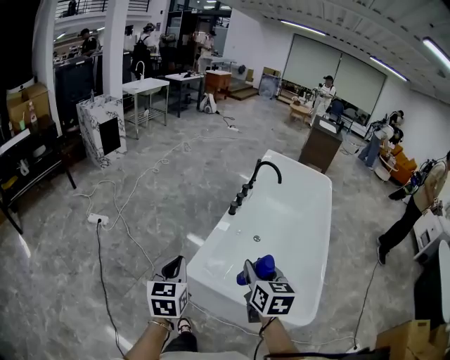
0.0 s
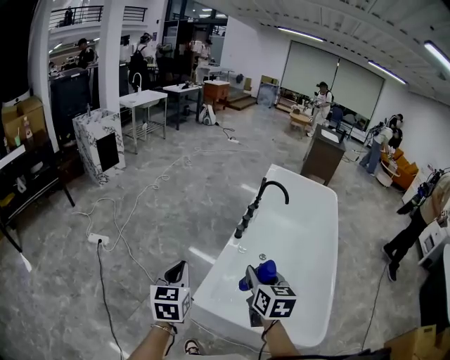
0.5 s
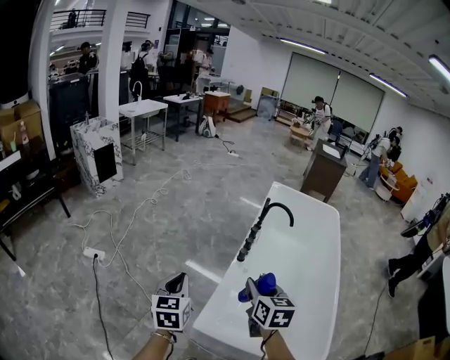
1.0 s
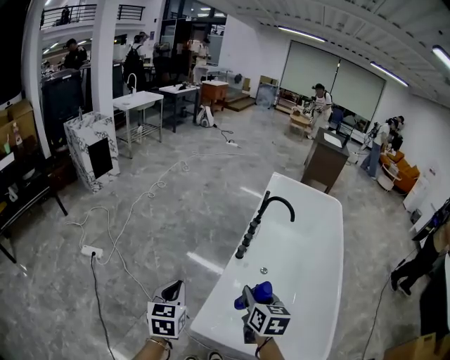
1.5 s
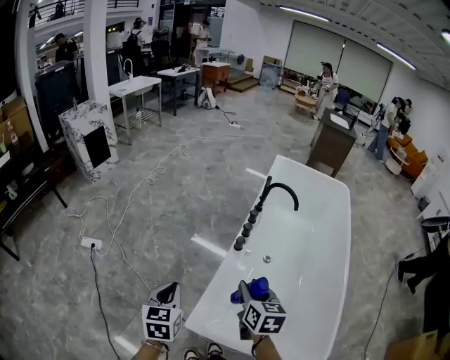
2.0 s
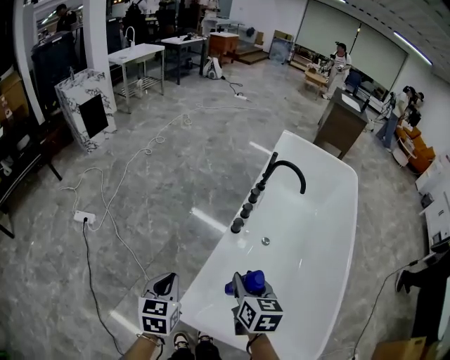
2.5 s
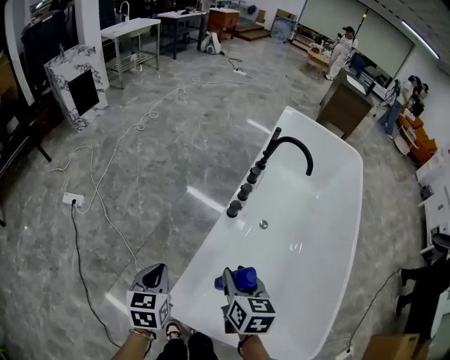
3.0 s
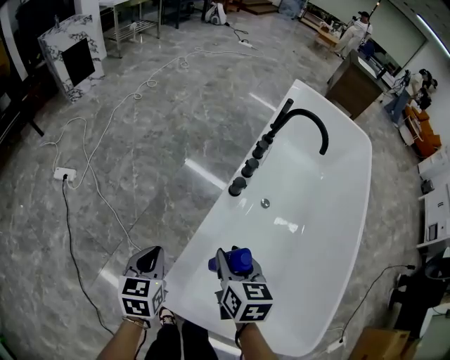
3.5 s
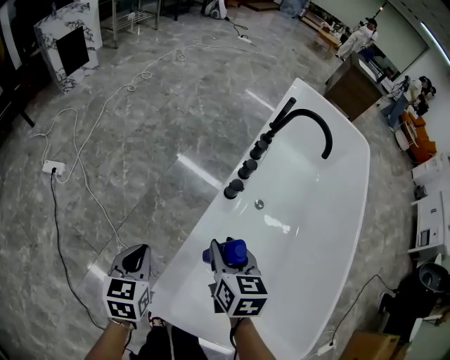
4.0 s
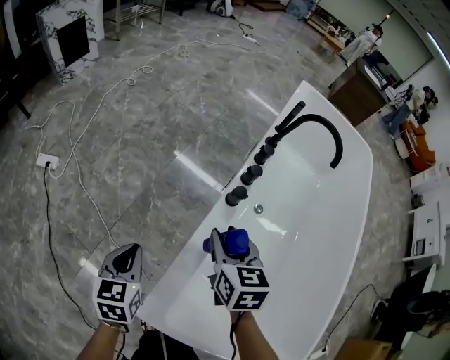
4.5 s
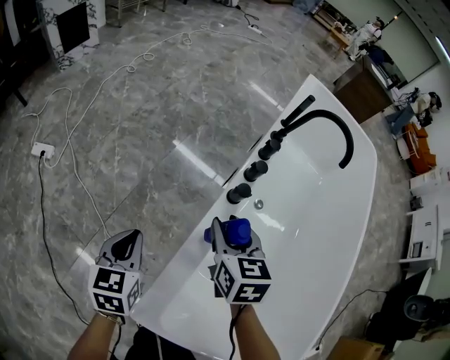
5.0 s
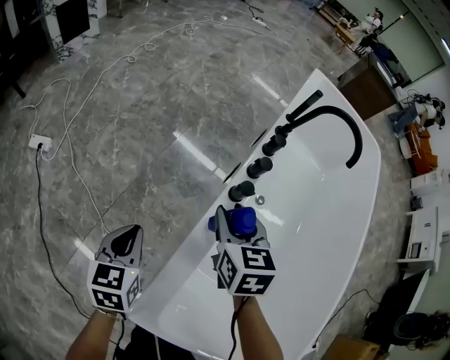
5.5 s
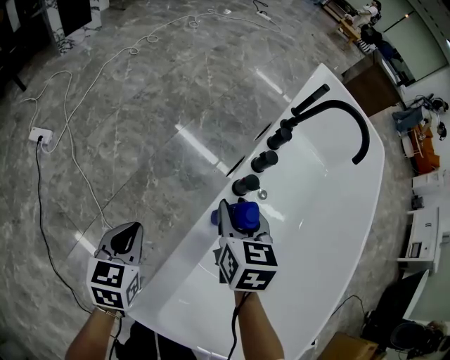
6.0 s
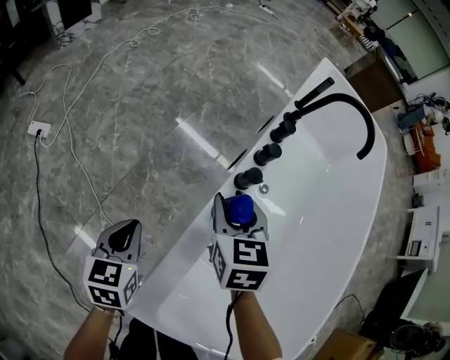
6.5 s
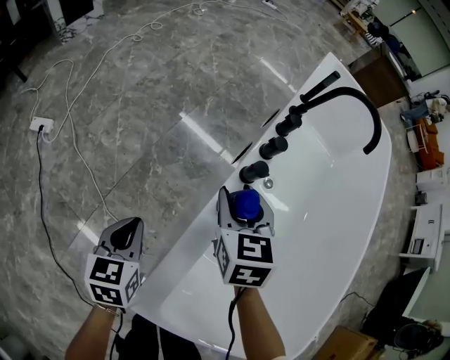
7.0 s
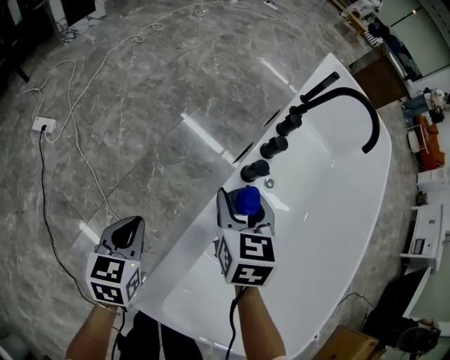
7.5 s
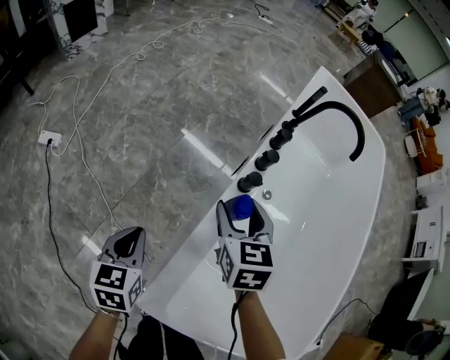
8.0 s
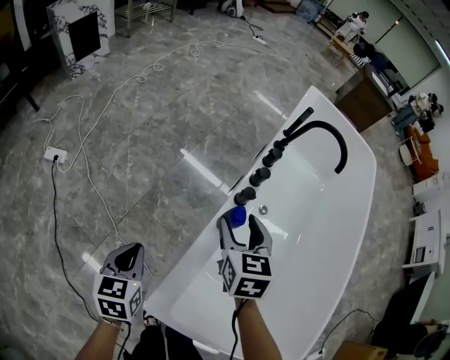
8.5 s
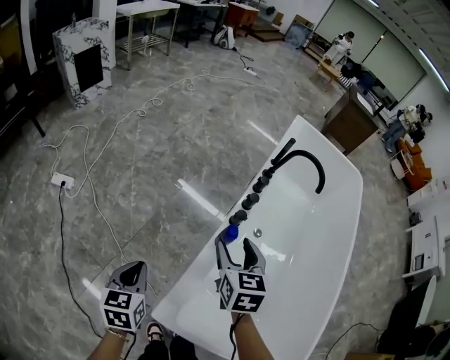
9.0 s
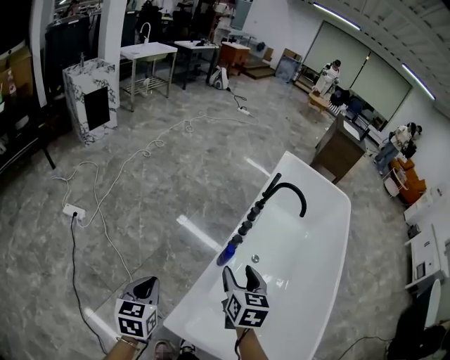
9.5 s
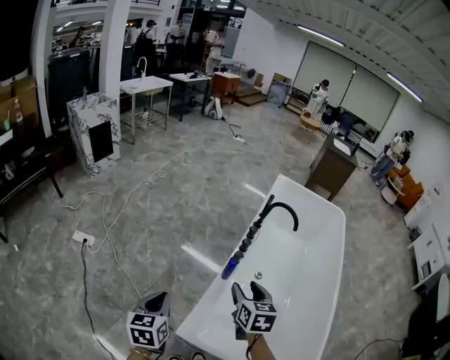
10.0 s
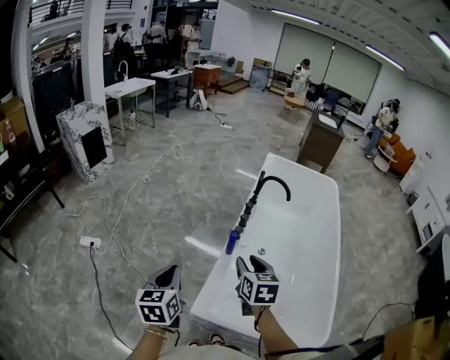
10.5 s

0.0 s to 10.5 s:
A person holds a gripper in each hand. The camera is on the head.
0.0 to 2.0 s: The two grippers go about 20 cm forward.
2.0 to 4.0 s: The left gripper travels downward by roughly 20 cm; the right gripper is displaced downward and forward by some 20 cm.
4.0 to 6.5 s: The left gripper travels downward and forward by approximately 10 cm. The right gripper goes approximately 10 cm forward.
6.5 to 8.5 s: Both grippers move upward, about 5 cm. The right gripper opens its fingers.
8.5 to 10.5 s: The left gripper is displaced upward by about 25 cm; the right gripper travels upward and backward by approximately 25 cm, and closes.

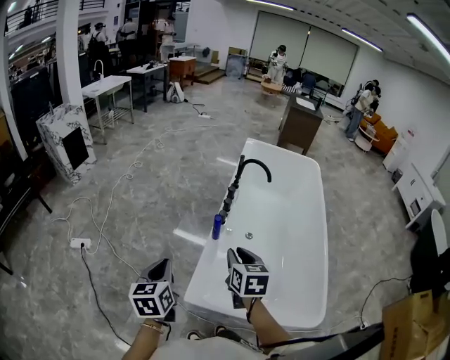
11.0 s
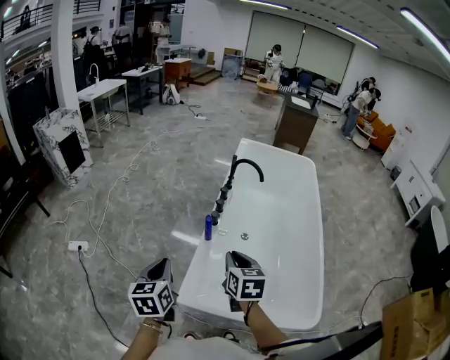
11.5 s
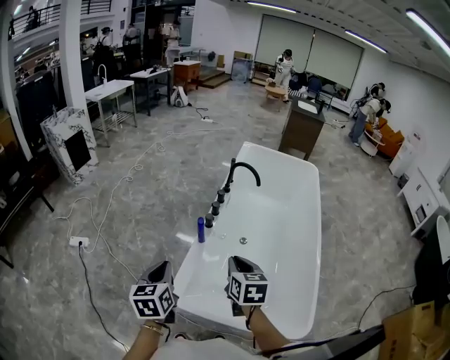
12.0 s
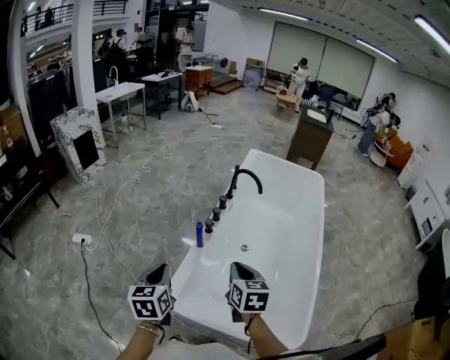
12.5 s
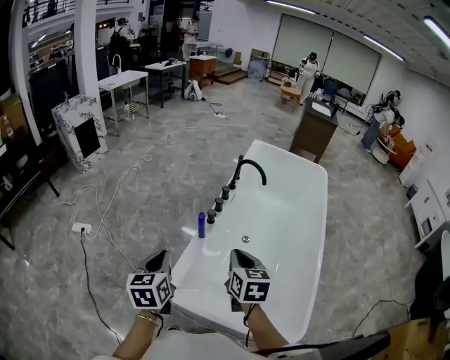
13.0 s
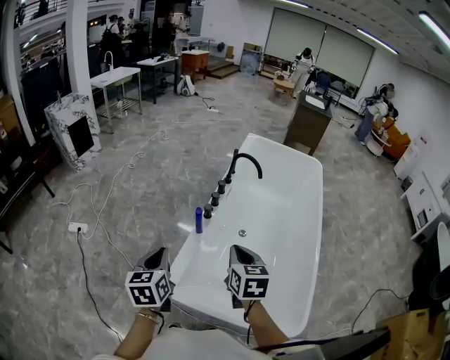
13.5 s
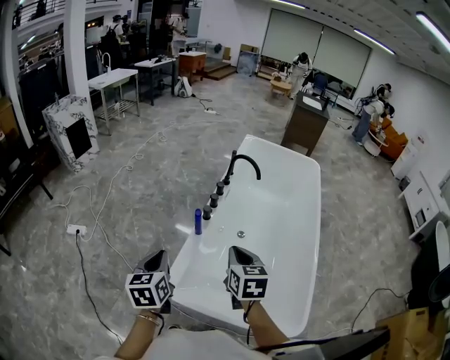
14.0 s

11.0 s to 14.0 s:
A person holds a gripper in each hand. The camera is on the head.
11.0 to 12.5 s: Both grippers travel together to the right, some 10 cm.
12.5 to 14.0 s: The grippers stay close to where they were, moving slightly.

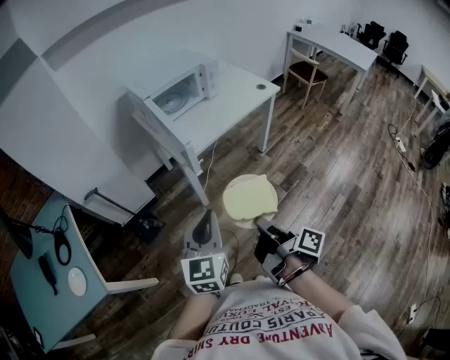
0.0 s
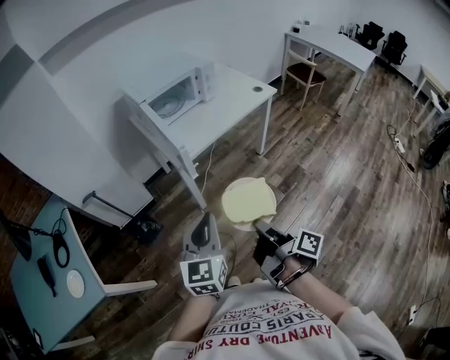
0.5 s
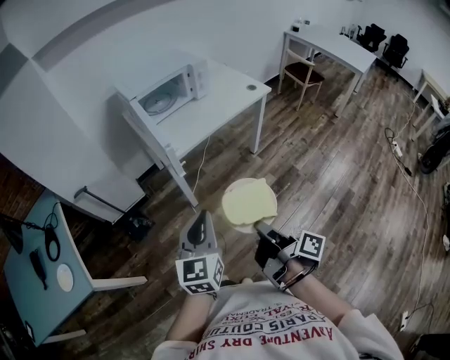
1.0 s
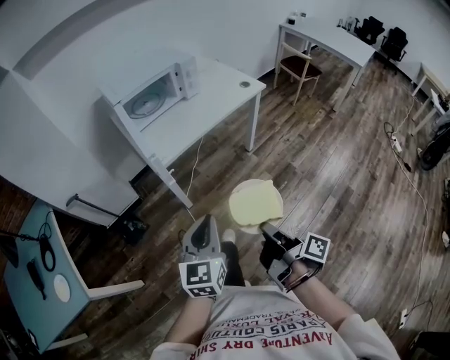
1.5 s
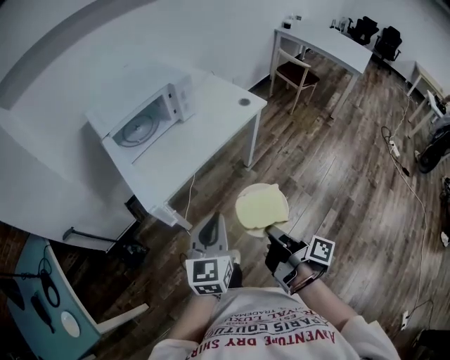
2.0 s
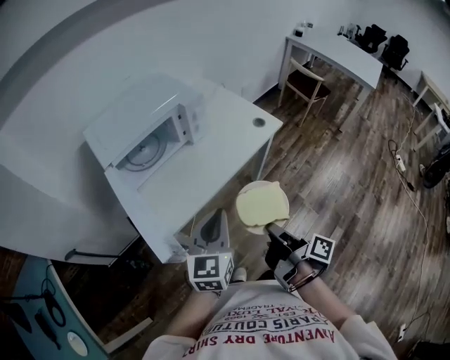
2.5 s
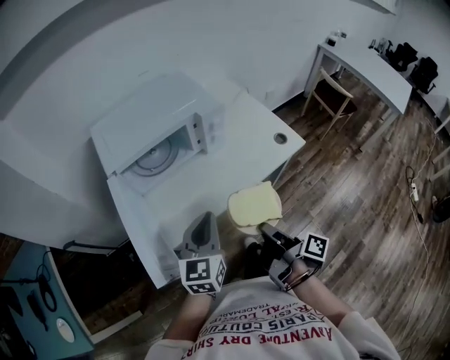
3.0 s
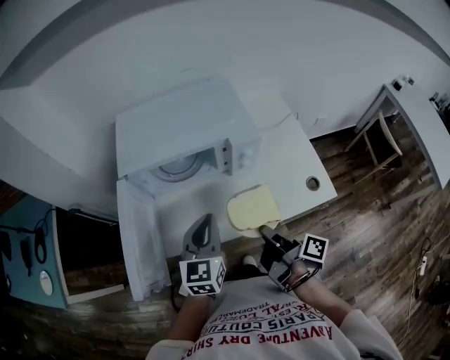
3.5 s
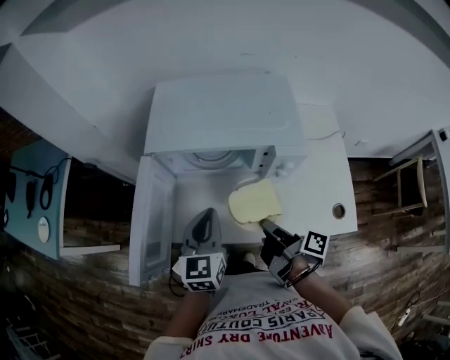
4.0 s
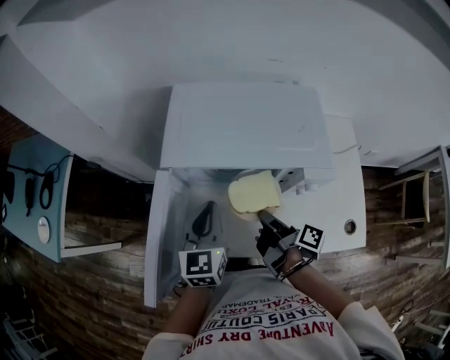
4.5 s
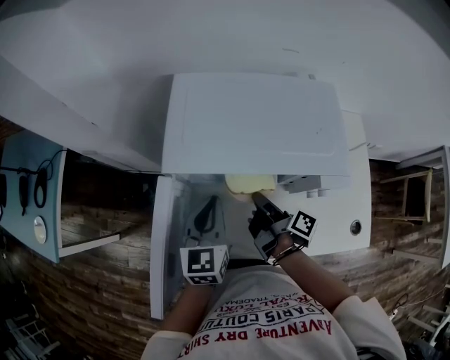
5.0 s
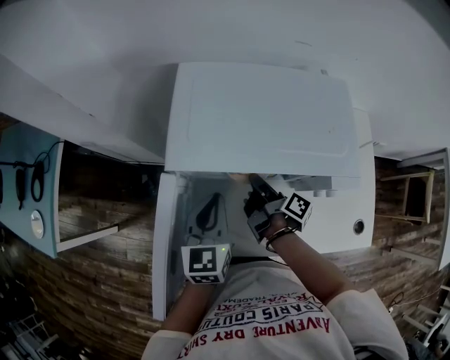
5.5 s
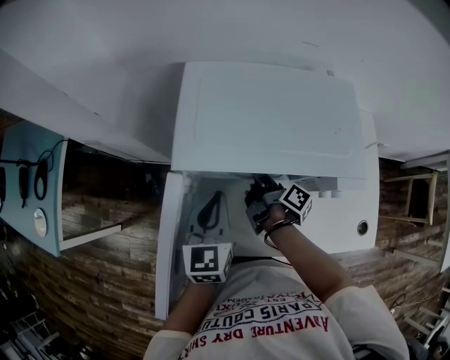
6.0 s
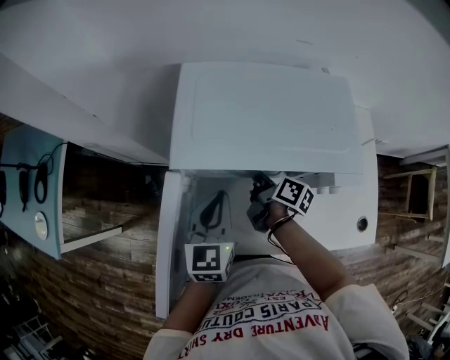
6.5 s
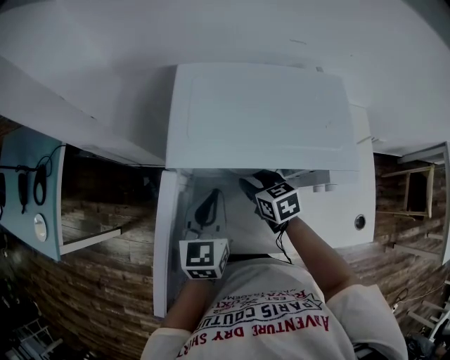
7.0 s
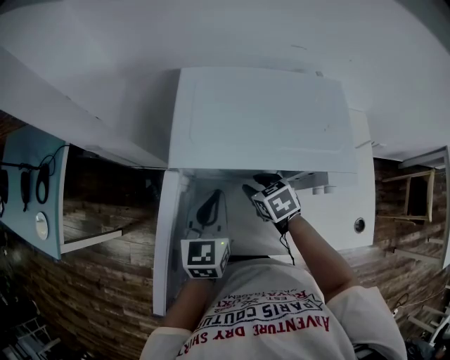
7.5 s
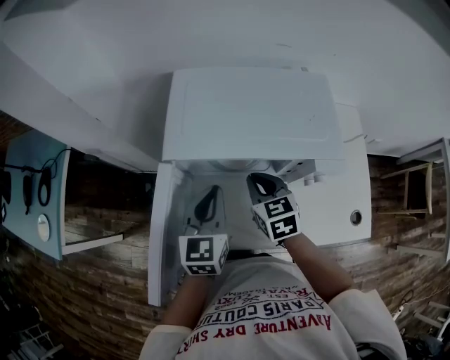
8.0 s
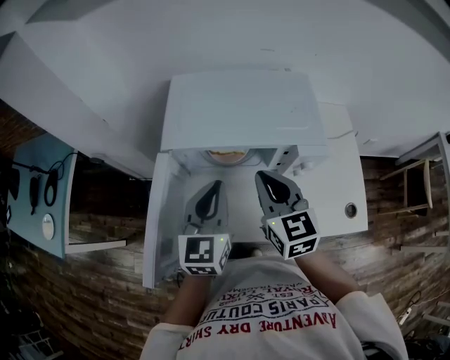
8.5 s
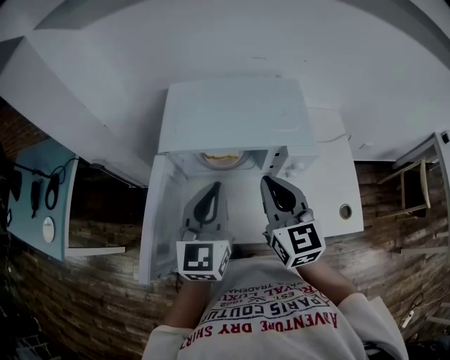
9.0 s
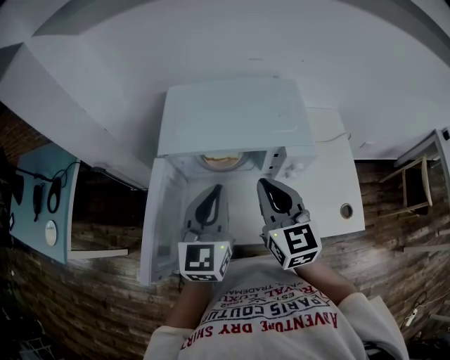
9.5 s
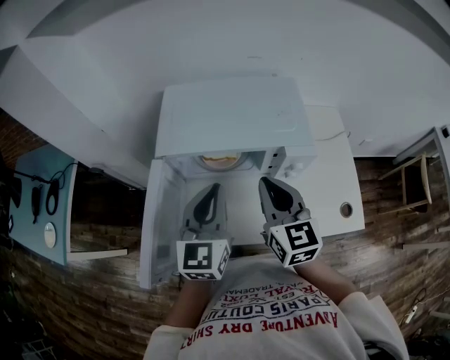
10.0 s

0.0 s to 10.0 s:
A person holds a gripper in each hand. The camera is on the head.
0.0 to 2.0 s: The left gripper changes place by roughly 25 cm.
2.0 to 4.0 s: The left gripper moves about 35 cm, and rotates roughly 50 degrees.
4.0 to 6.0 s: The left gripper ends up some 15 cm from where it was.
8.0 to 10.0 s: The left gripper travels upward by approximately 10 cm.

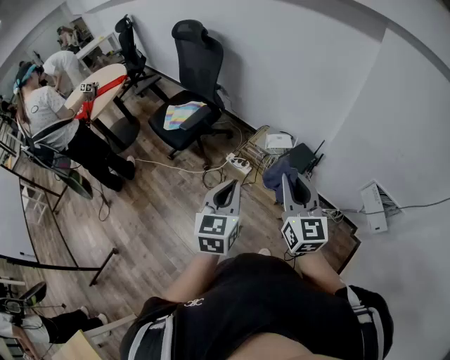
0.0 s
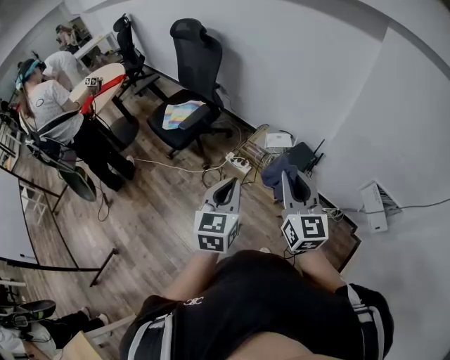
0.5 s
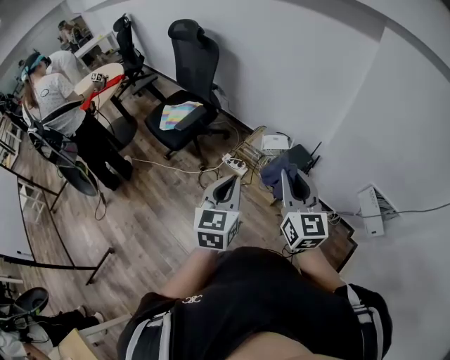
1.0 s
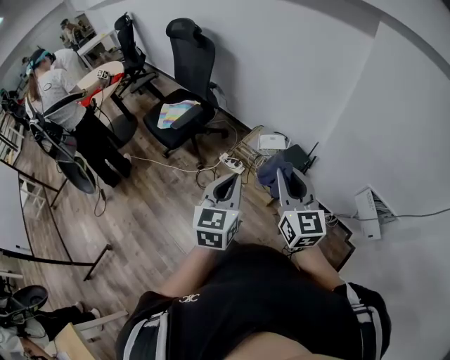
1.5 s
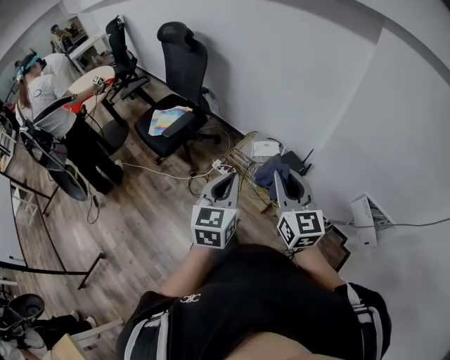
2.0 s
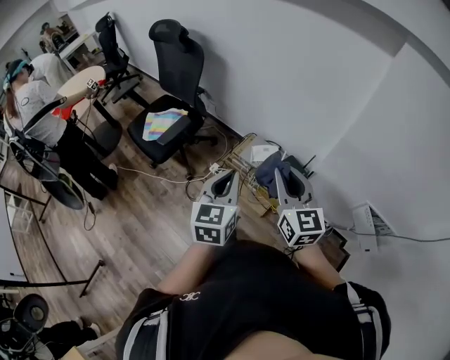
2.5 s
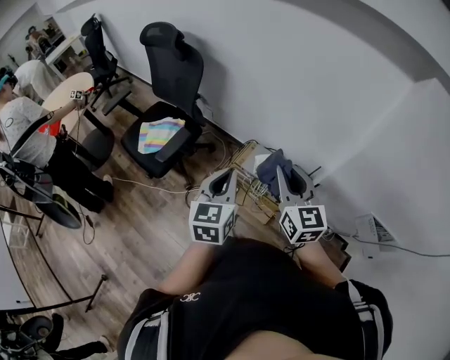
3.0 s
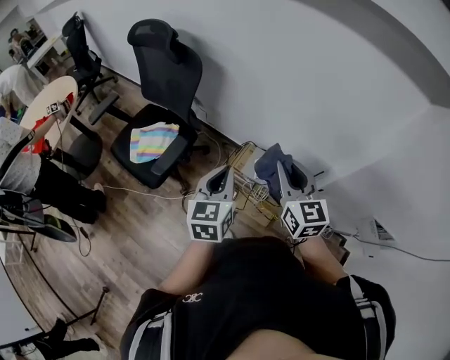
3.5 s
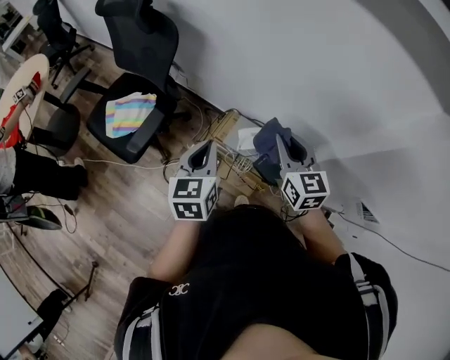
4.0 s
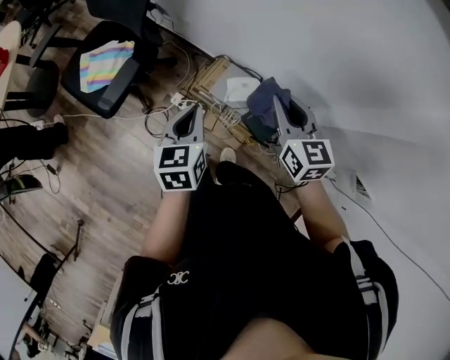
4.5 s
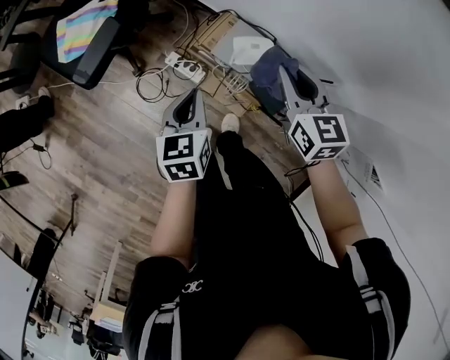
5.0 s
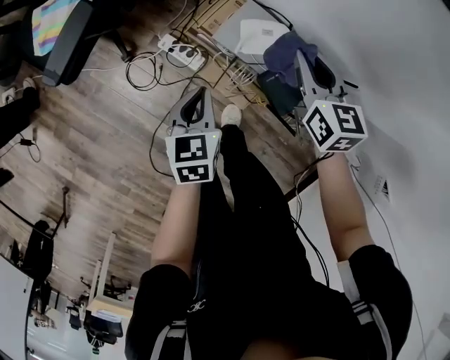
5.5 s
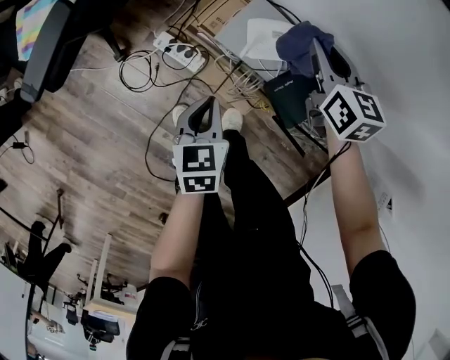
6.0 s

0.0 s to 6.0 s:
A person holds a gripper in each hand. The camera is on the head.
0.0 to 2.0 s: The two grippers go roughly 10 cm forward and to the right.
2.0 to 4.0 s: The two grippers go roughly 35 cm forward.
4.0 to 6.0 s: Both grippers travel together downward, about 40 cm. The left gripper changes its angle by approximately 30 degrees. Meanwhile the right gripper turns by roughly 20 degrees.
